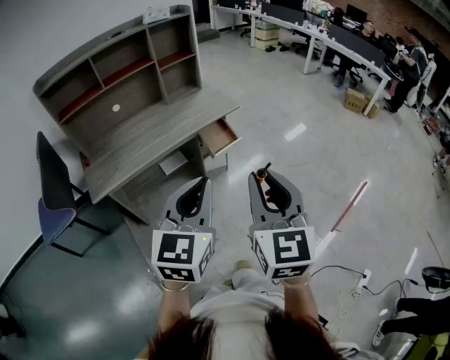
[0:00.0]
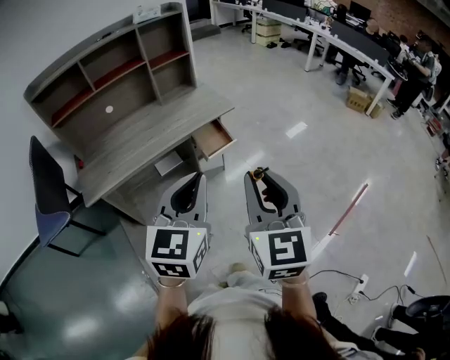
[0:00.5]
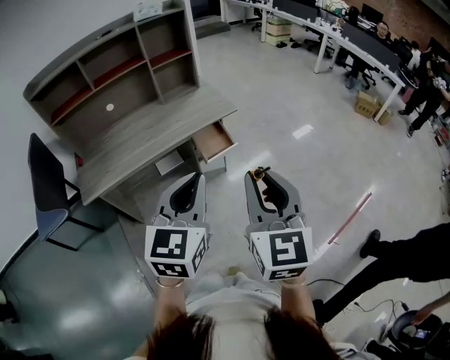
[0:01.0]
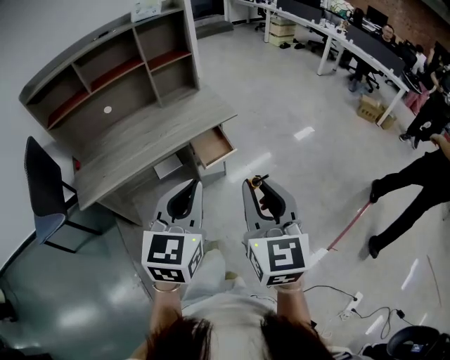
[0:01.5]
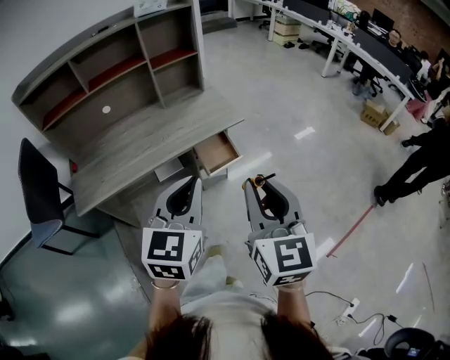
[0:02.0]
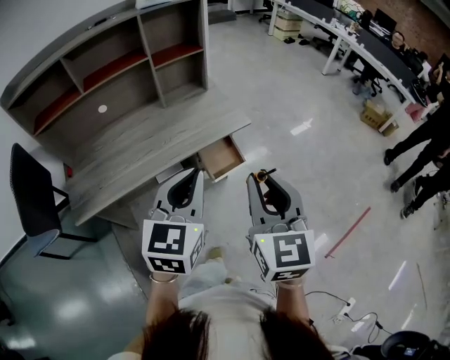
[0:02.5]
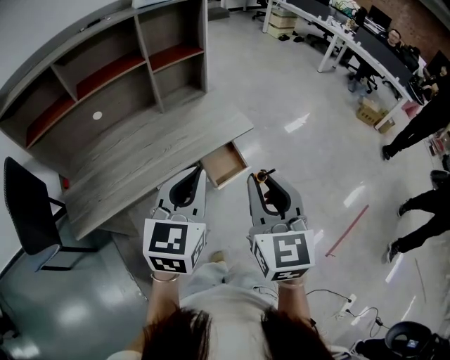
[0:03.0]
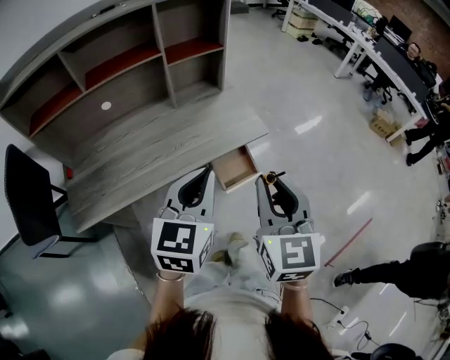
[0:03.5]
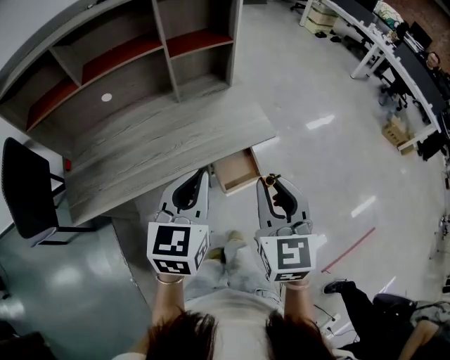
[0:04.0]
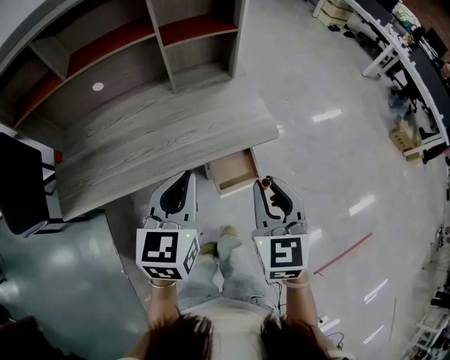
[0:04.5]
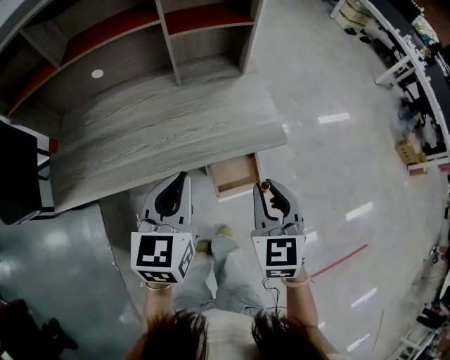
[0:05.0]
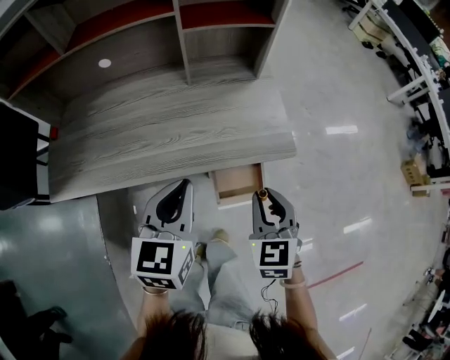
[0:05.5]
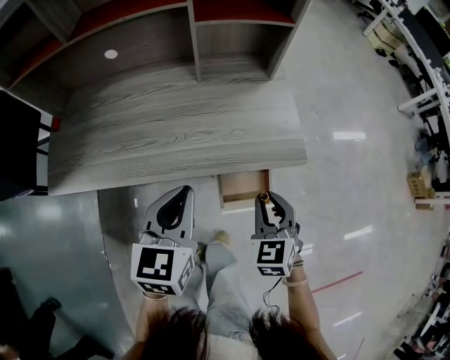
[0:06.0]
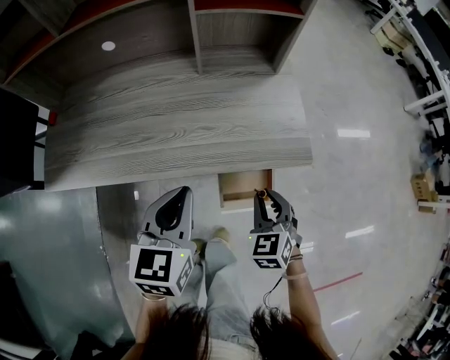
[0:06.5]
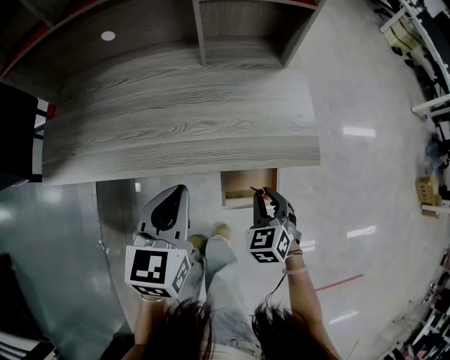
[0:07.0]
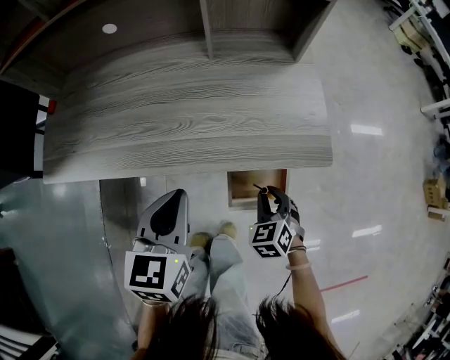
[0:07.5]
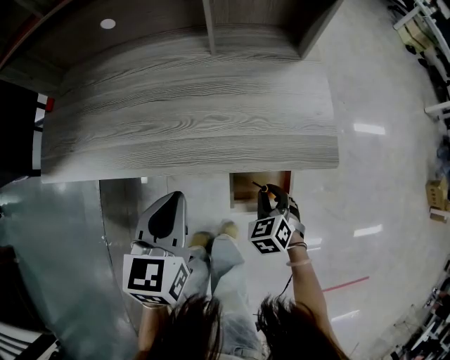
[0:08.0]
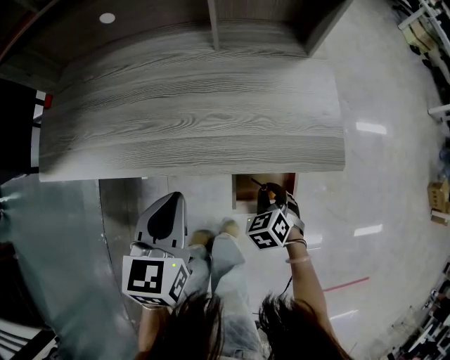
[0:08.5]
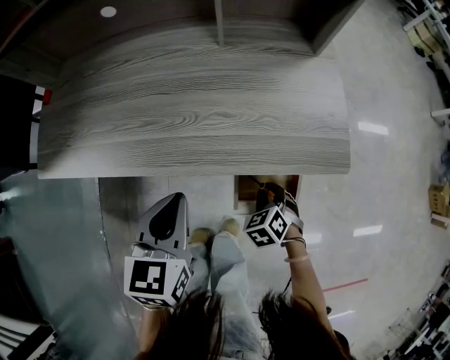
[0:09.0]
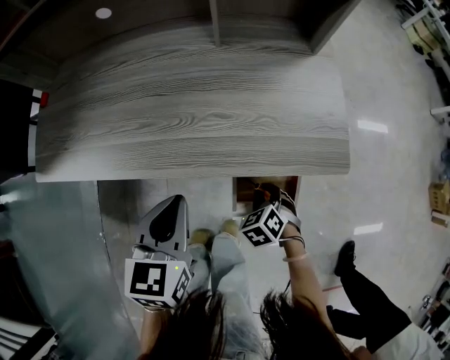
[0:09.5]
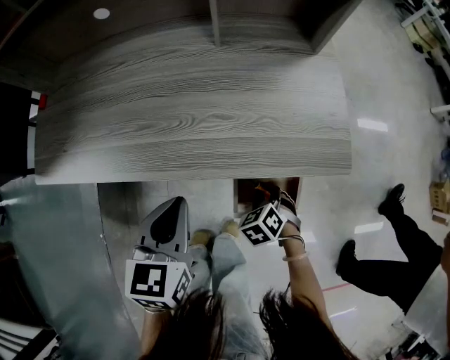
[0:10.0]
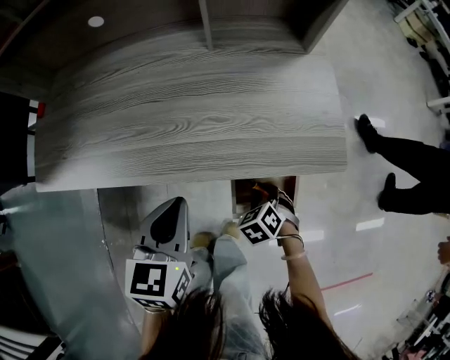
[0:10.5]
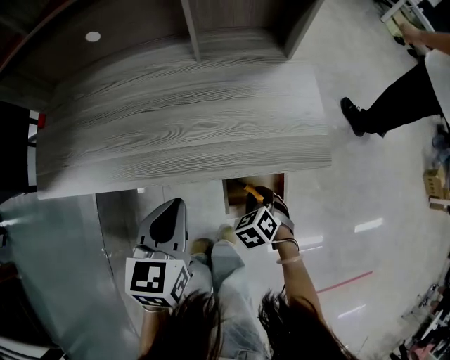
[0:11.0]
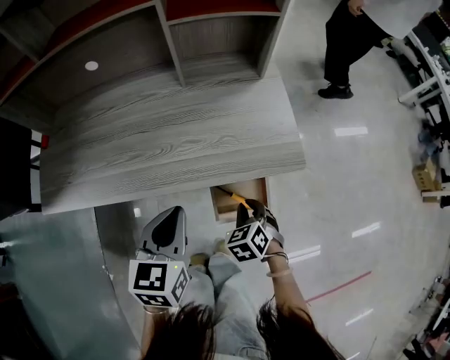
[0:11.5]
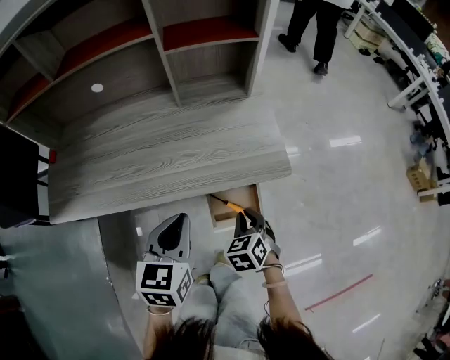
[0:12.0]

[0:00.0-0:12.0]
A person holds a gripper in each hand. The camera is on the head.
0:00.0 to 0:02.0: The grippers both shift forward by roughly 20 cm.
0:02.0 to 0:04.0: The grippers both shift forward by about 20 cm.
0:04.0 to 0:06.0: The left gripper heads downward and forward, covering roughly 15 cm, and swivels about 20 degrees, while the right gripper travels downward and forward by some 30 cm, and rotates roughly 30 degrees.
0:06.0 to 0:08.0: The left gripper shifts approximately 10 cm downward. The right gripper moves downward, roughly 20 cm, and turns by approximately 20 degrees.
0:08.0 to 0:10.0: The right gripper travels downward by roughly 5 cm.
0:10.0 to 0:12.0: The right gripper heads upward, covering some 15 cm, and changes its angle by some 30 degrees. The left gripper shifts about 10 cm upward and to the right.

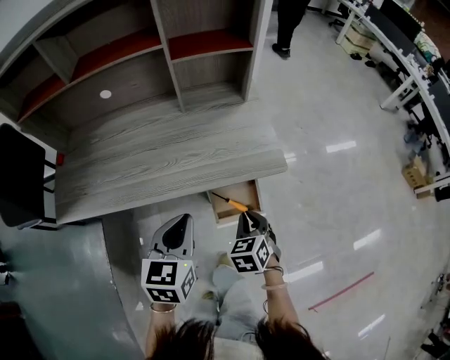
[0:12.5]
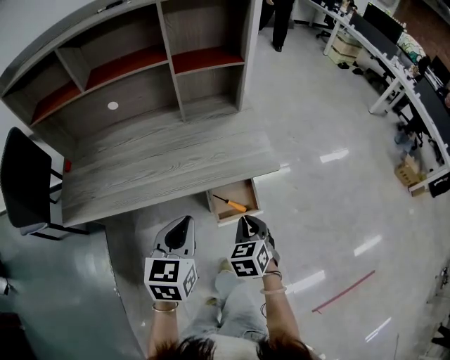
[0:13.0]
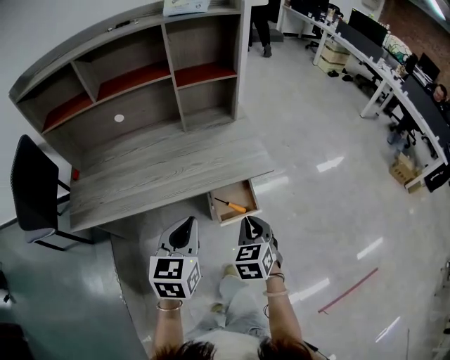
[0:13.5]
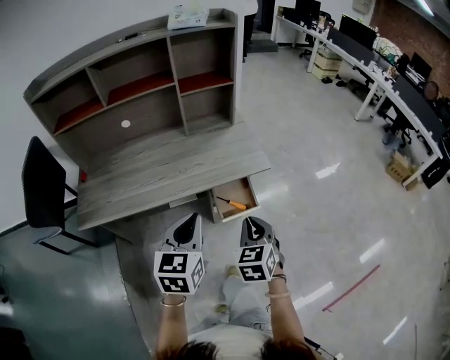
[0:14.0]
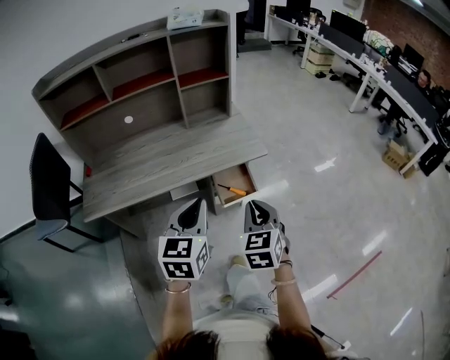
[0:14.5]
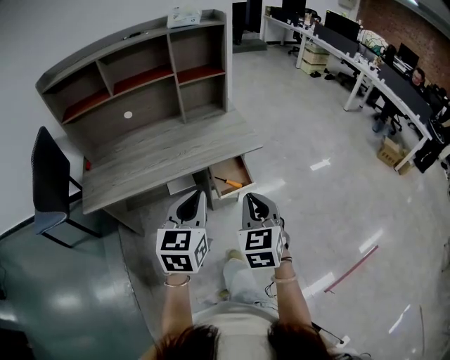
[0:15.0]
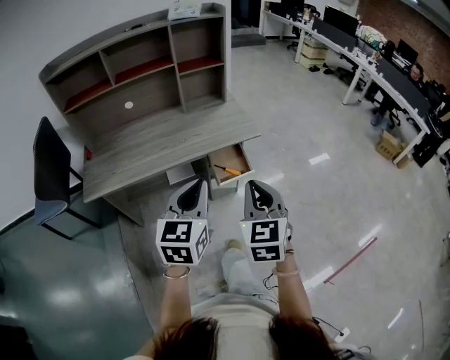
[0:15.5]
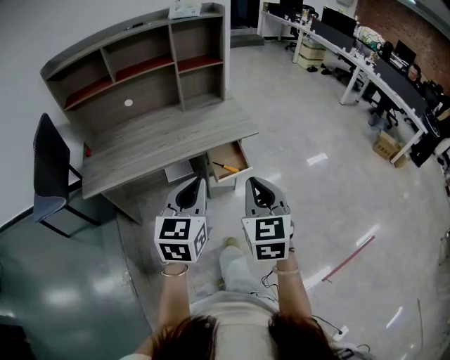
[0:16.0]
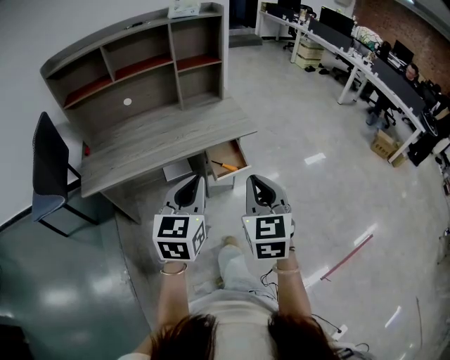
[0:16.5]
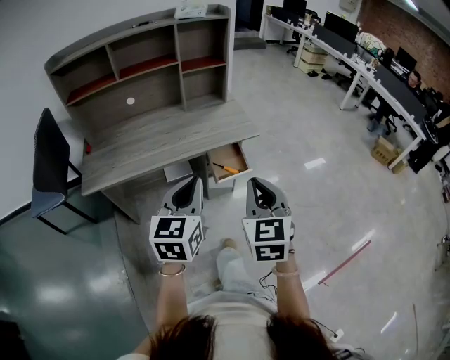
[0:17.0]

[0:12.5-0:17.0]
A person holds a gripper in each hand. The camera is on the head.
0:12.5 to 0:14.5: The left gripper is displaced backward and upward by some 20 cm. Meanwhile the right gripper travels upward and backward by approximately 30 cm, and turns by some 20 degrees.
0:14.5 to 0:17.0: The left gripper is displaced backward by approximately 10 cm. Meanwhile the right gripper goes about 15 cm backward and upward.

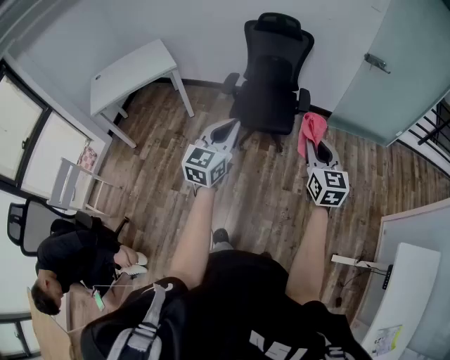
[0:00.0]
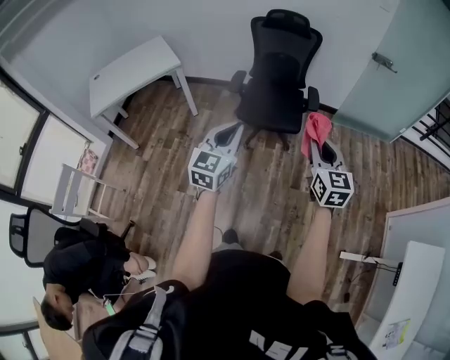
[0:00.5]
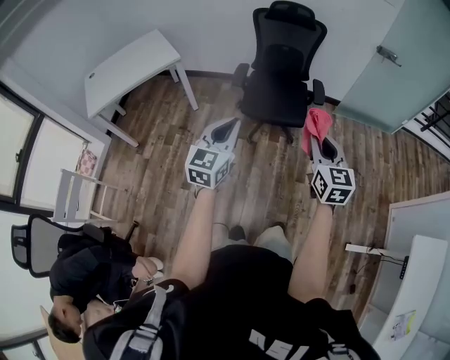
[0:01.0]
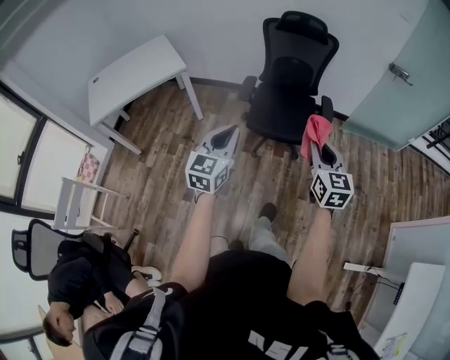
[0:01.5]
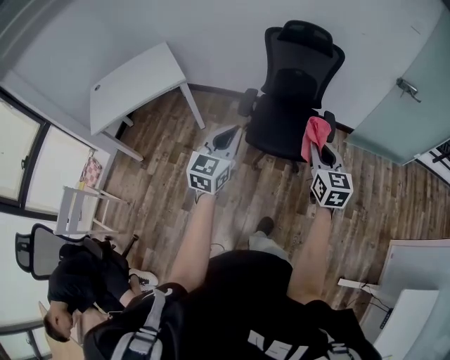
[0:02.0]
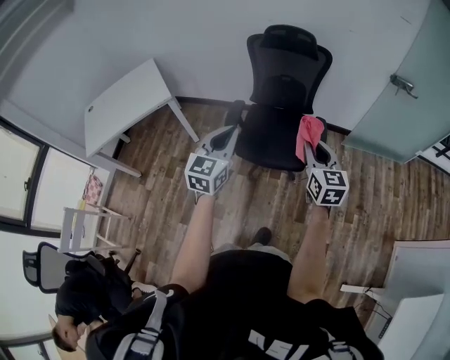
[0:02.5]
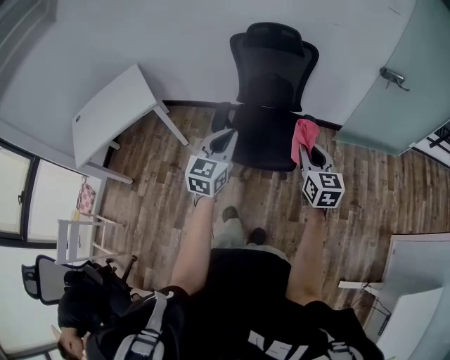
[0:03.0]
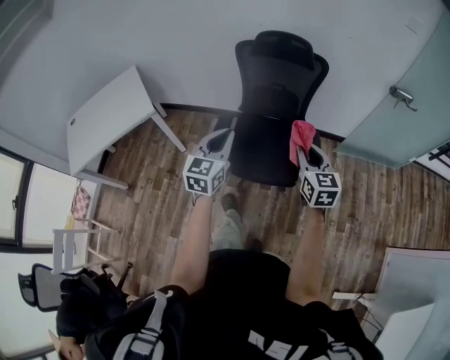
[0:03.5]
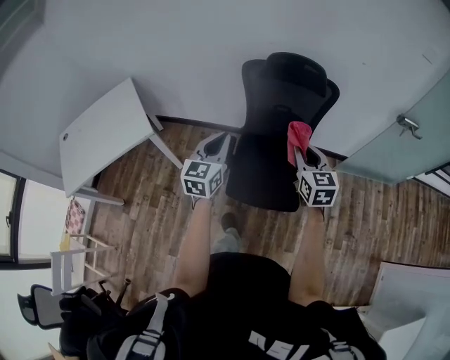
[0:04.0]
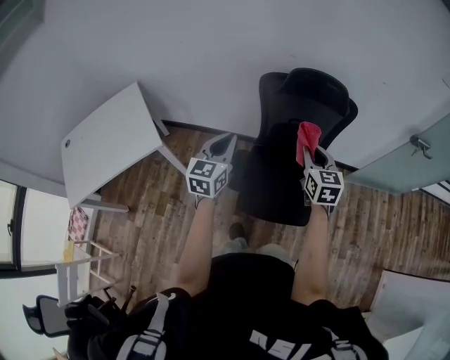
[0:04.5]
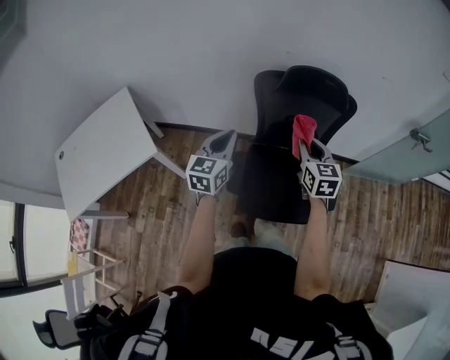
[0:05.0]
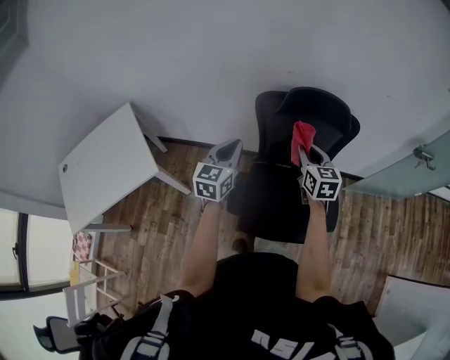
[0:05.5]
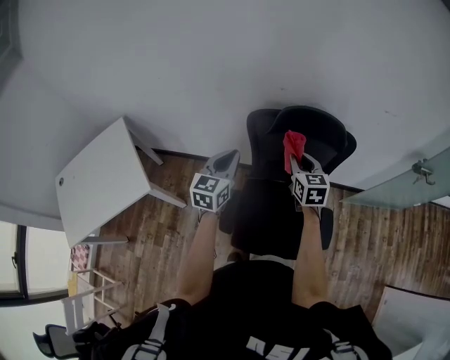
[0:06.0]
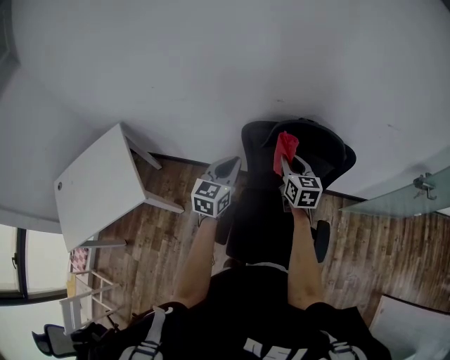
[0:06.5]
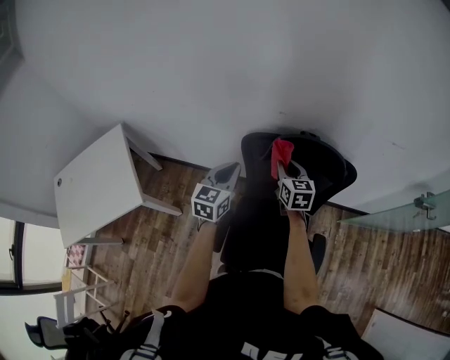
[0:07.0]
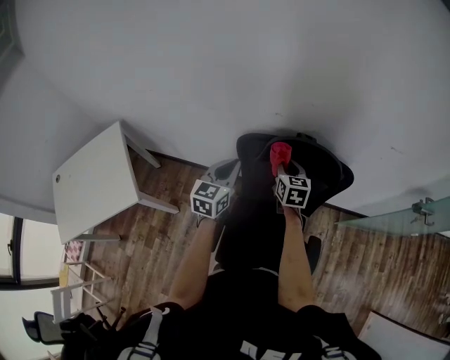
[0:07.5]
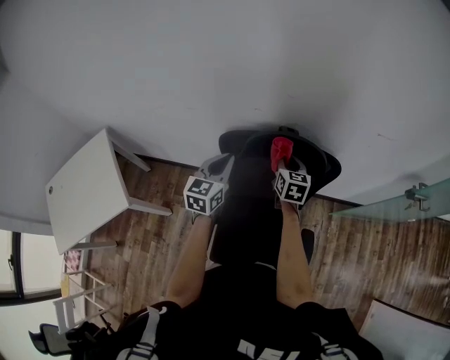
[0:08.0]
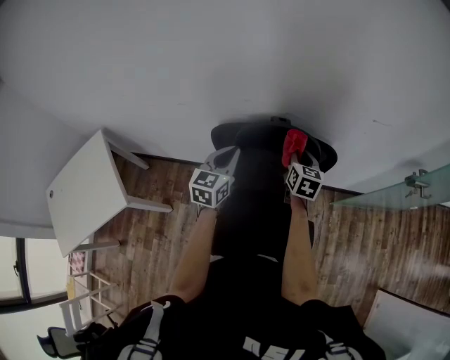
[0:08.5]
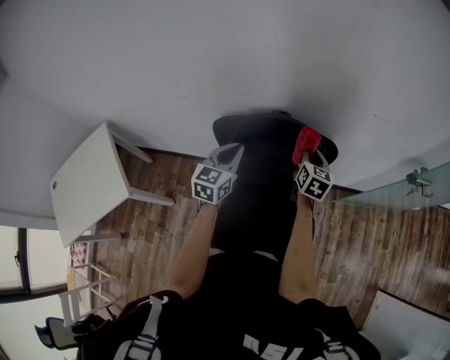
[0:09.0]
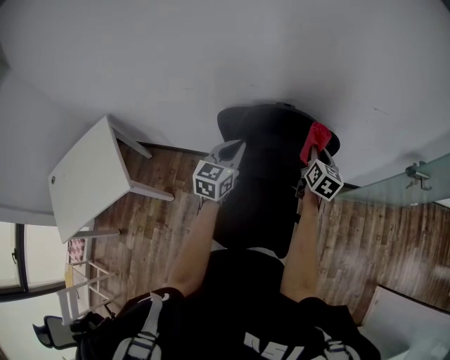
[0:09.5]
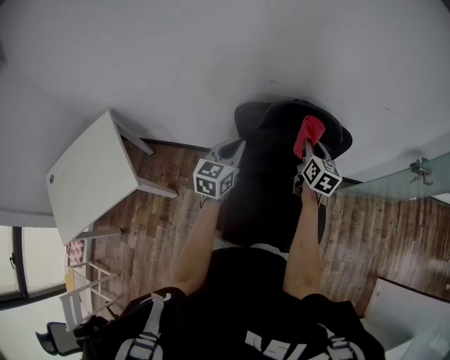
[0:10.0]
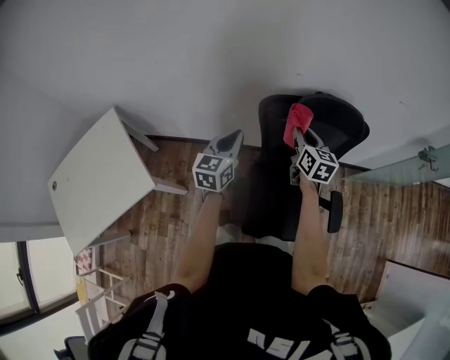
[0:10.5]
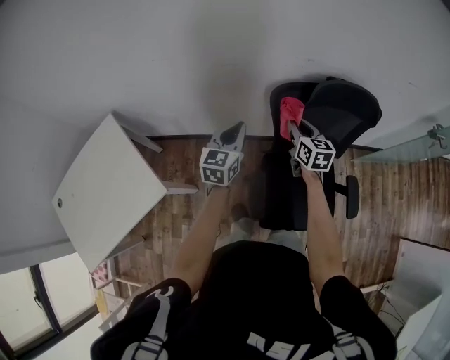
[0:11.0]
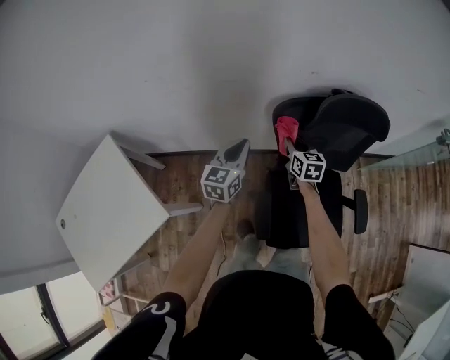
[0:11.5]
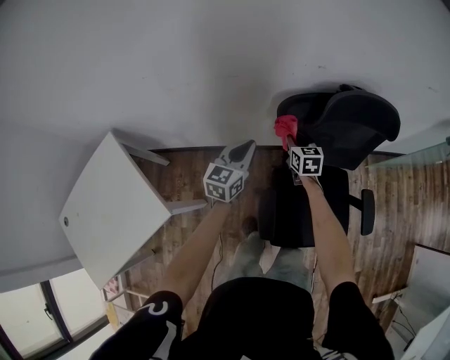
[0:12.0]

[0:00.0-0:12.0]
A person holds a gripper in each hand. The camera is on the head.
0:00.0 to 0:02.0: Both grippers travel together forward and to the left, approximately 25 cm.
0:02.0 to 0:04.0: Both grippers travel together forward, about 35 cm.
0:04.0 to 0:06.0: The grippers both shift forward by some 30 cm.
0:06.0 to 0:08.0: Both grippers move forward and to the right, roughly 15 cm.
0:08.0 to 0:10.0: The two grippers go roughly 5 cm backward. The left gripper goes to the right and returns, approximately 5 cm each way. The right gripper travels to the right and back again, some 15 cm each way.
0:10.0 to 0:12.0: The right gripper travels to the left and downward by roughly 30 cm, while the left gripper shifts some 20 cm to the left and downward.
